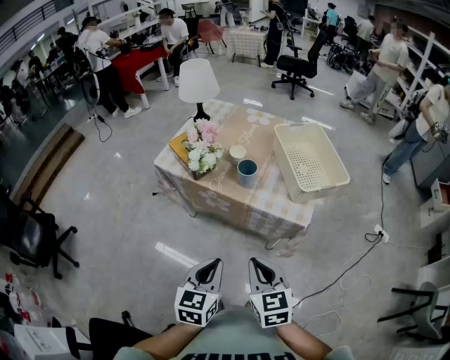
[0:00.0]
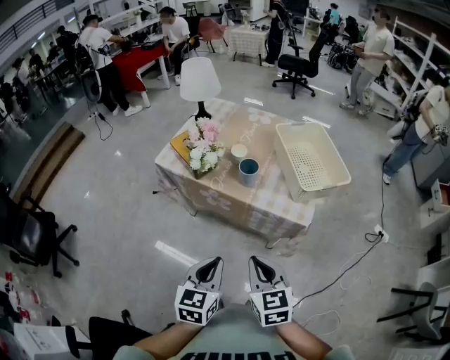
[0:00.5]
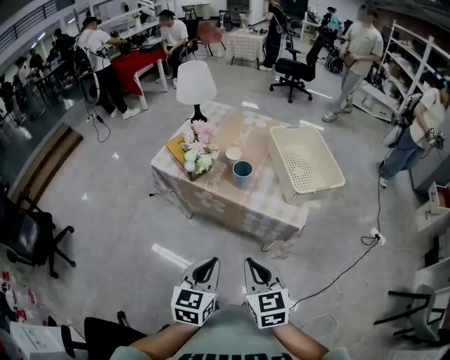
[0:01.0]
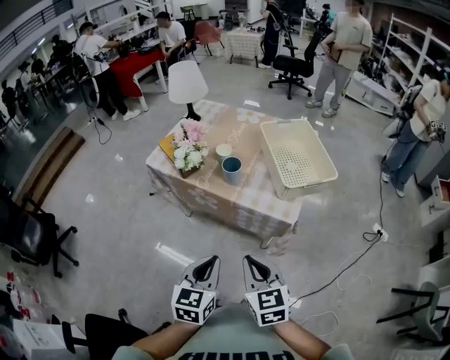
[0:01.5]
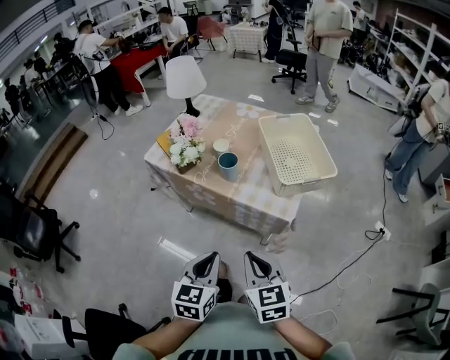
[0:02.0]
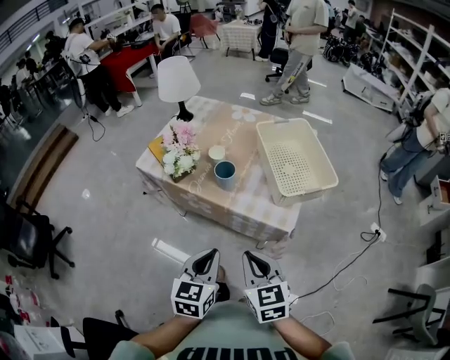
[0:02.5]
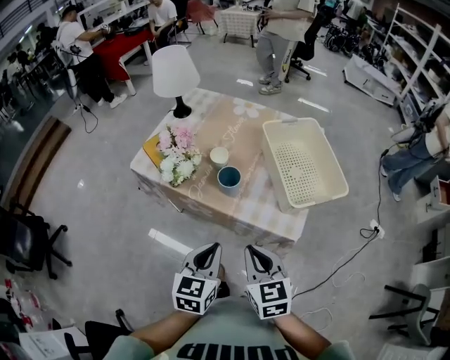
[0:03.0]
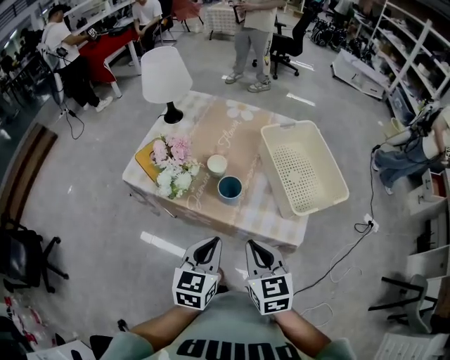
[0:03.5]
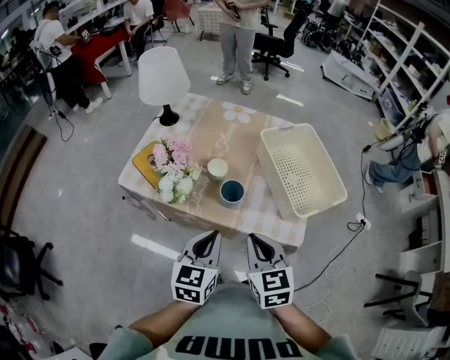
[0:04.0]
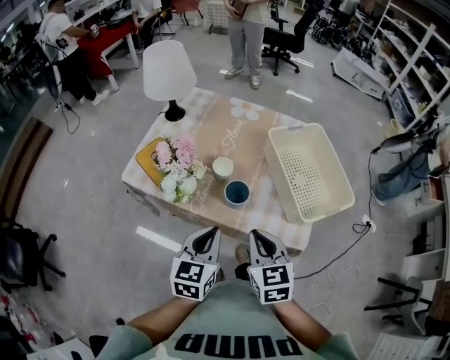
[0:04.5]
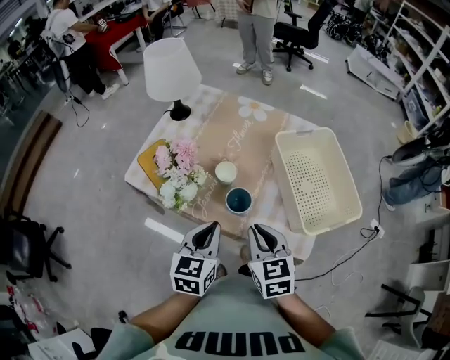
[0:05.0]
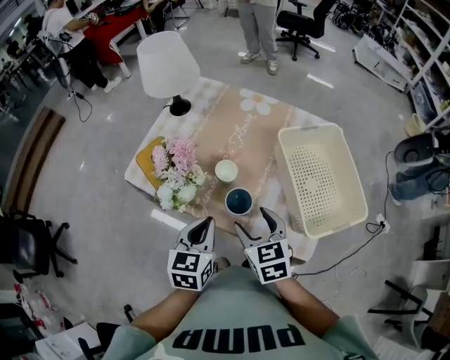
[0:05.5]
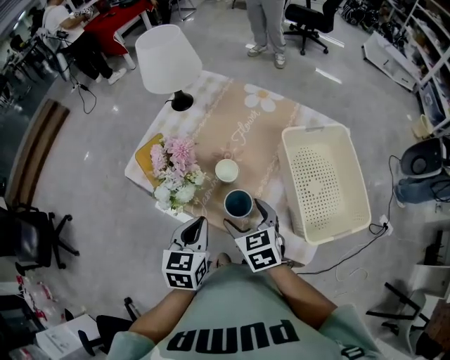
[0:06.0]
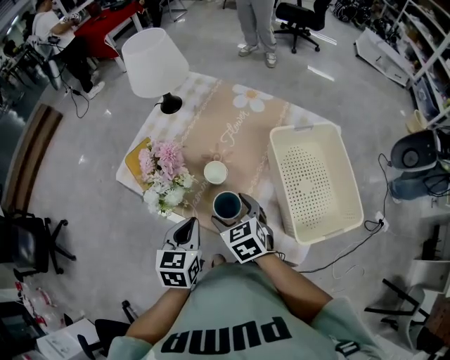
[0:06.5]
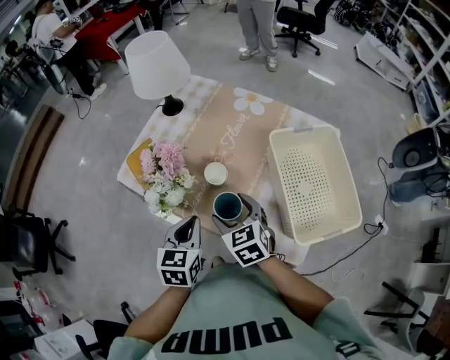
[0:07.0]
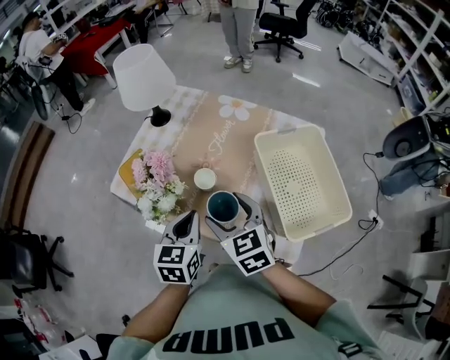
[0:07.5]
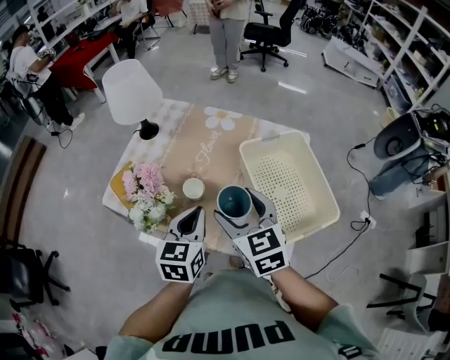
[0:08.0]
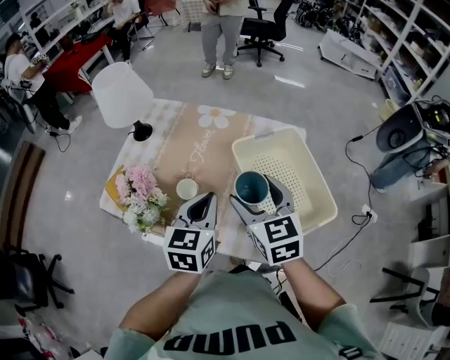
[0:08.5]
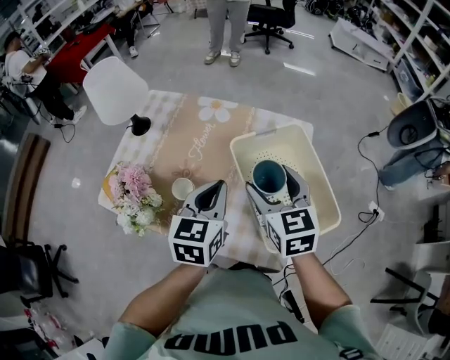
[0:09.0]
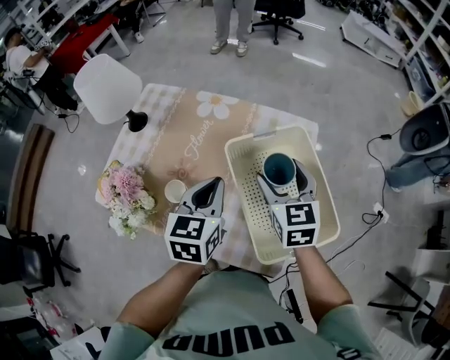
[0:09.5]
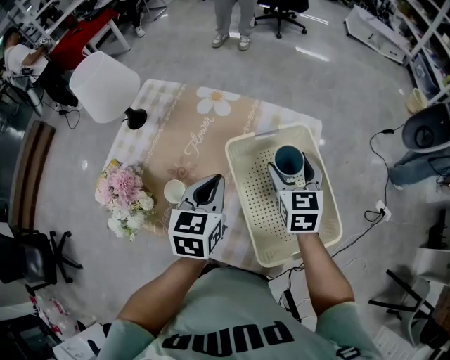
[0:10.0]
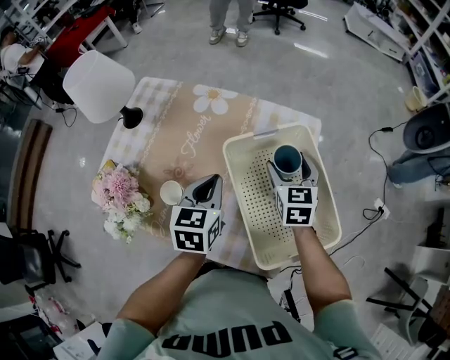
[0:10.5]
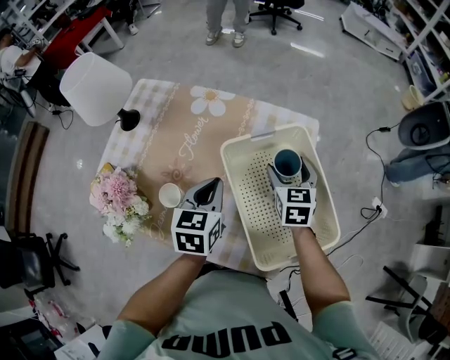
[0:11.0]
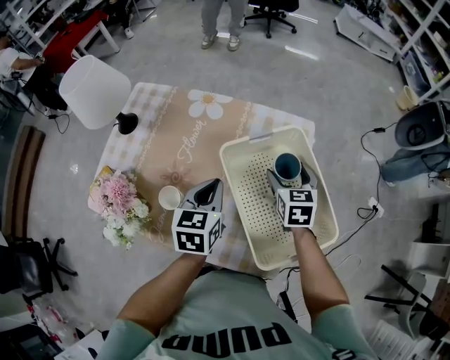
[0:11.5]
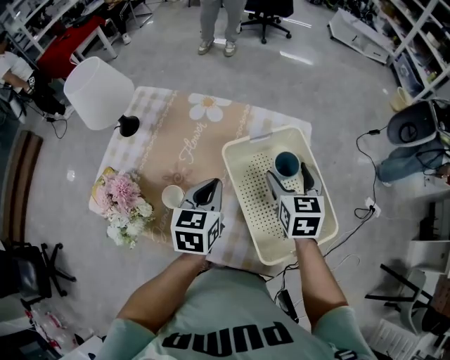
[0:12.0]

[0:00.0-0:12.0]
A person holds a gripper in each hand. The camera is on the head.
0:00.0 to 0:02.0: The two grippers go roughly 10 cm to the right.
0:02.0 to 0:04.0: The grippers both shift forward by approximately 20 cm.
0:04.0 to 0:06.0: The left gripper heads forward, covering approximately 10 cm, while the right gripper moves forward and downward, some 15 cm, swivels some 20 degrees, and opens up.
0:06.0 to 0:08.0: The left gripper shifts approximately 10 cm to the right and upward, while the right gripper shifts roughly 15 cm upward and to the right.
0:08.0 to 0:10.0: The left gripper goes about 15 cm forward and to the right; the right gripper travels to the right, forward and downward by approximately 30 cm.

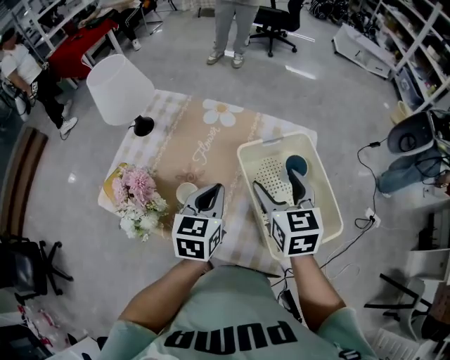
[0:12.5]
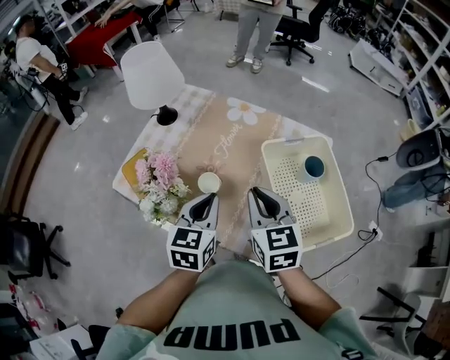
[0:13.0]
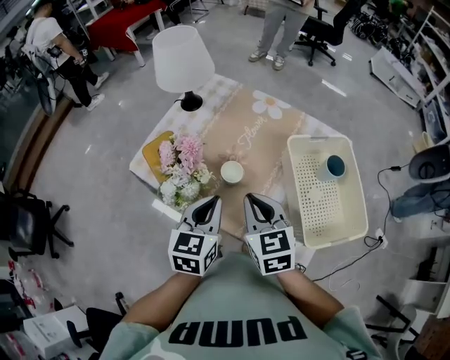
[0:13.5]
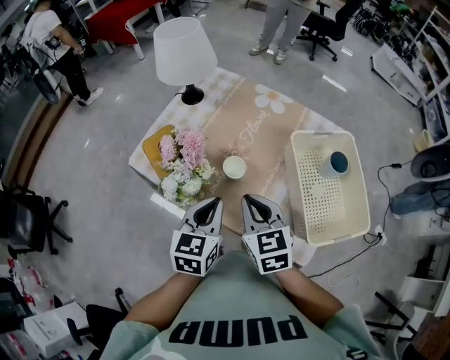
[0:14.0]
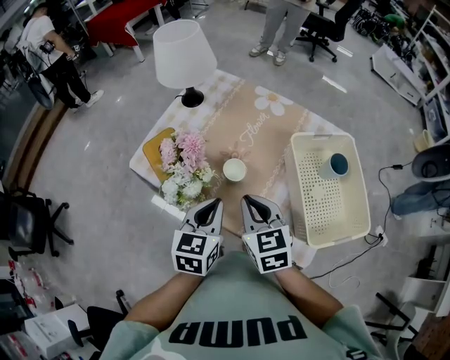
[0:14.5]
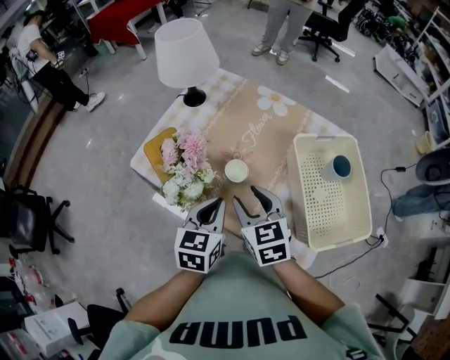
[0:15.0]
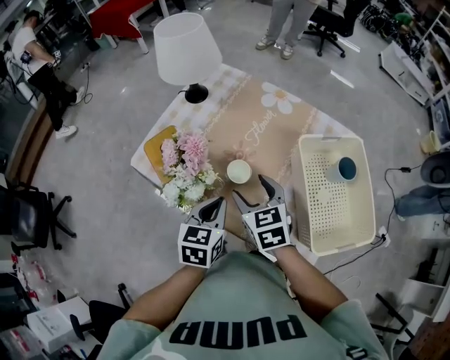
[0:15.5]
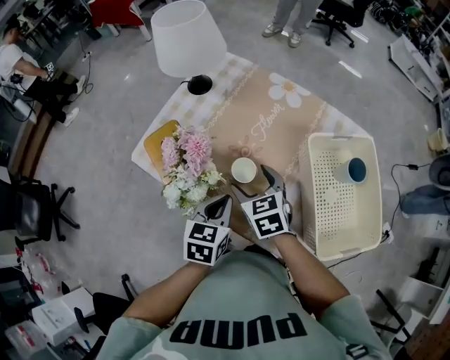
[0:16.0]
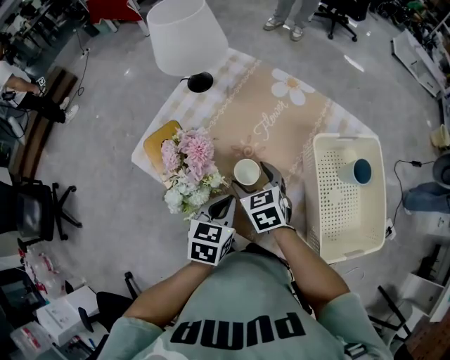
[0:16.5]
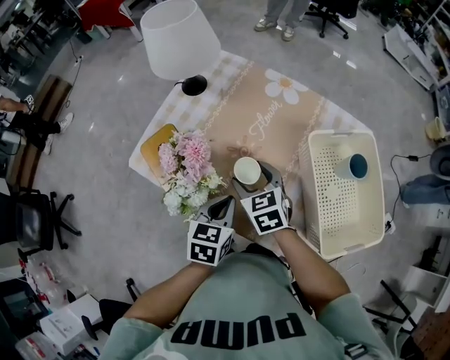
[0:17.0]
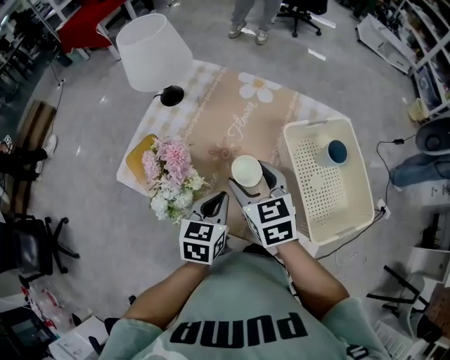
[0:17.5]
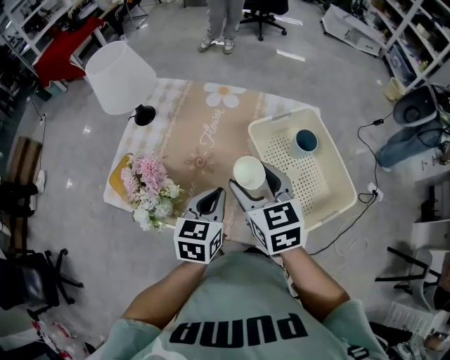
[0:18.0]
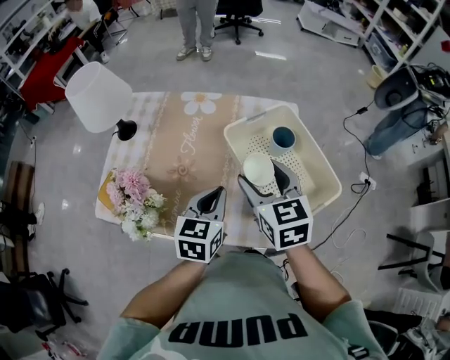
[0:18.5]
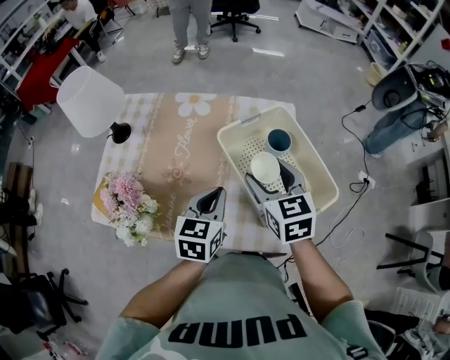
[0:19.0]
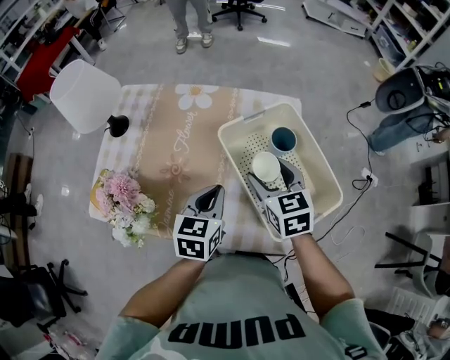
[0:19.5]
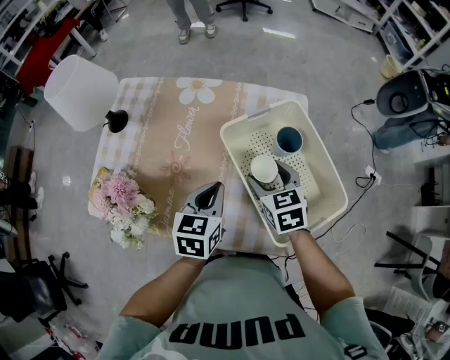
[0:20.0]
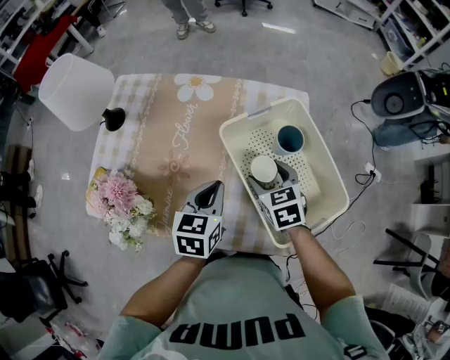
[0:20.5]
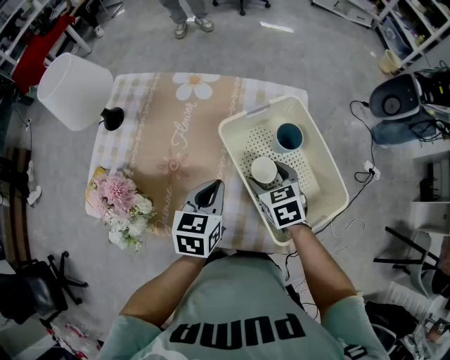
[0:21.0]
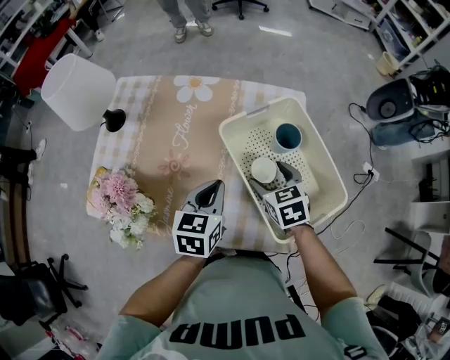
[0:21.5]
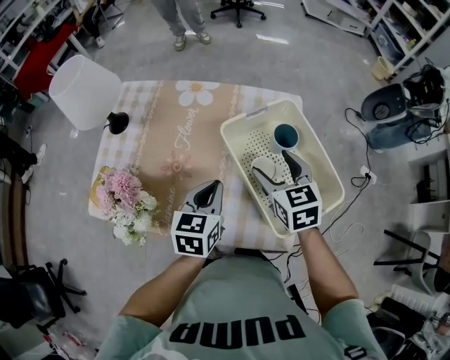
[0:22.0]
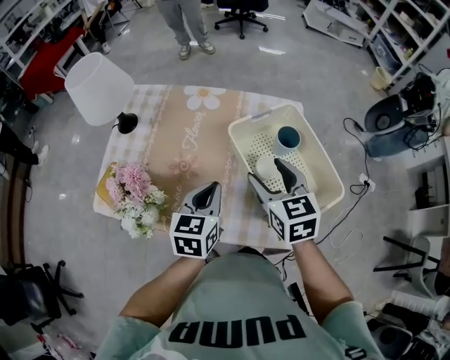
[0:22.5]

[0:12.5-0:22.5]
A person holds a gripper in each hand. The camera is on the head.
0:12.5 to 0:14.5: The two grippers go roughly 20 cm to the left and backward. The right gripper changes its angle by roughly 20 degrees, and closes its fingers.
0:14.5 to 0:16.5: The left gripper travels downward by some 10 cm. The right gripper heads downward and forward, covering approximately 15 cm, and opens its fingers.
0:16.5 to 0:18.5: The right gripper heads to the right and upward, covering about 25 cm, and turns by roughly 30 degrees. Meanwhile the left gripper travels to the right and upward by approximately 15 cm, and swivels some 20 degrees.
0:18.5 to 0:20.5: The right gripper is displaced downward by roughly 15 cm. Meanwhile the left gripper goes roughly 5 cm downward and forward.
0:20.5 to 0:22.5: The left gripper ends up roughly 5 cm from where it was. The right gripper moves upward, approximately 15 cm.

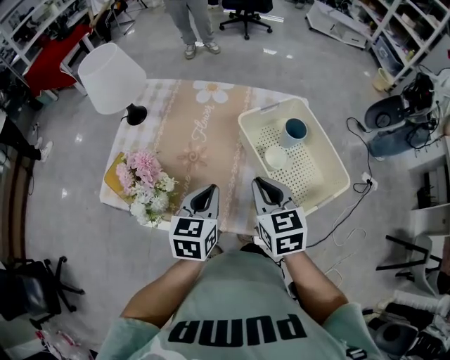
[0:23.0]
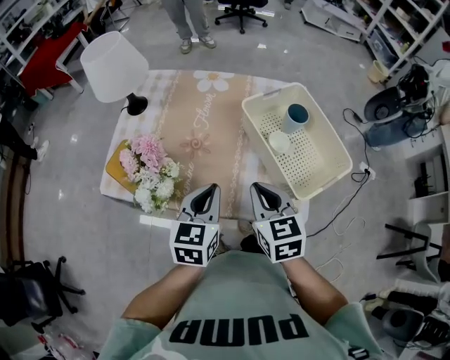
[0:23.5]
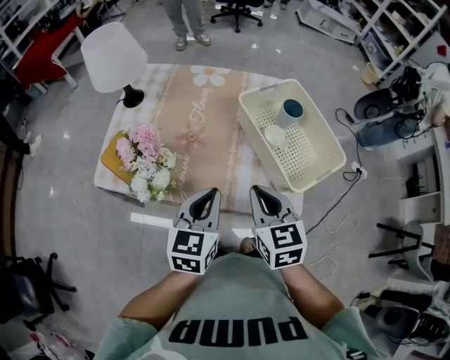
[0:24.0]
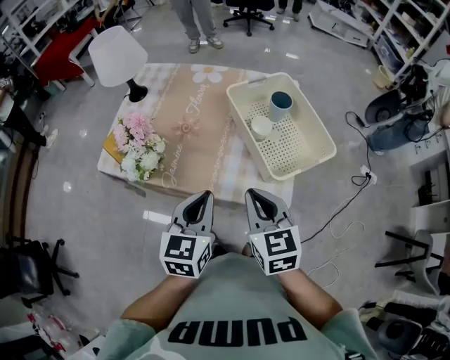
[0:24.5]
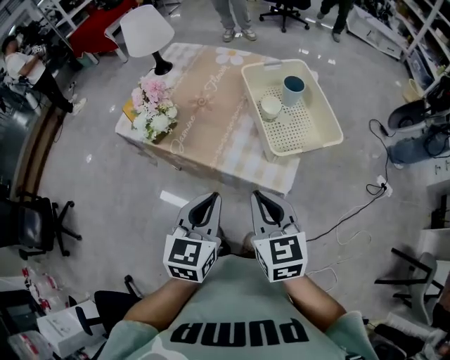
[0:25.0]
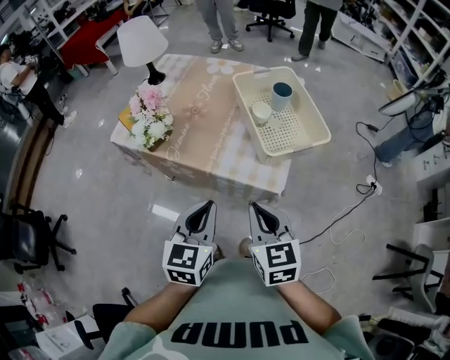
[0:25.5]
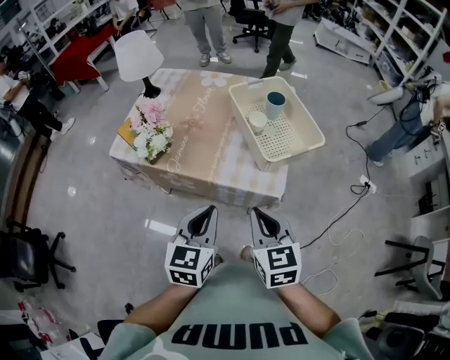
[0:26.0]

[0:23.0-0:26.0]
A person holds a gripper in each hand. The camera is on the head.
0:23.0 to 0:24.5: The grippers both shift backward by about 15 cm.
0:24.5 to 0:26.0: The grippers both shift backward by some 15 cm.

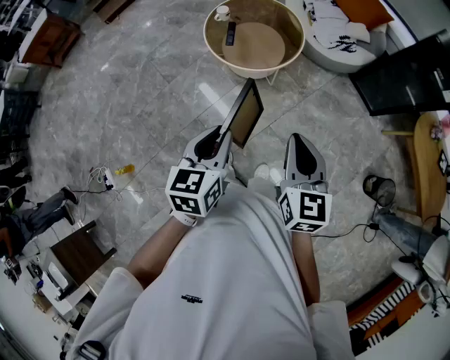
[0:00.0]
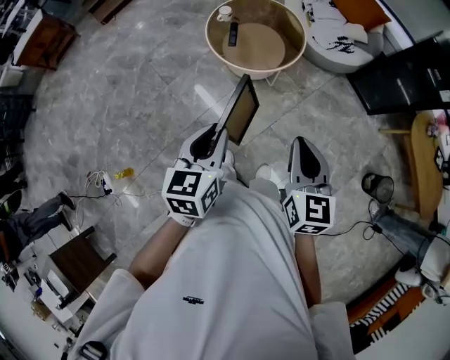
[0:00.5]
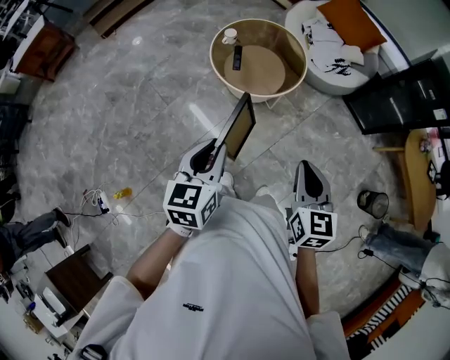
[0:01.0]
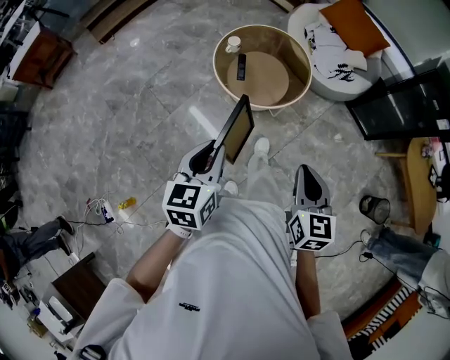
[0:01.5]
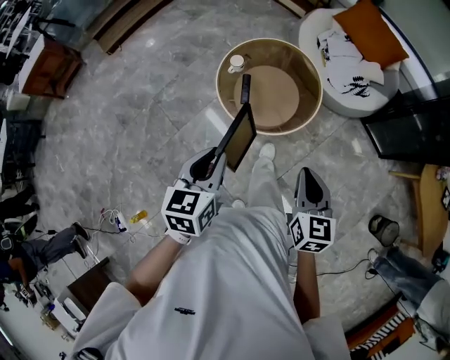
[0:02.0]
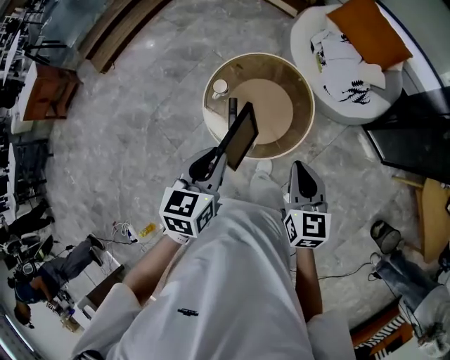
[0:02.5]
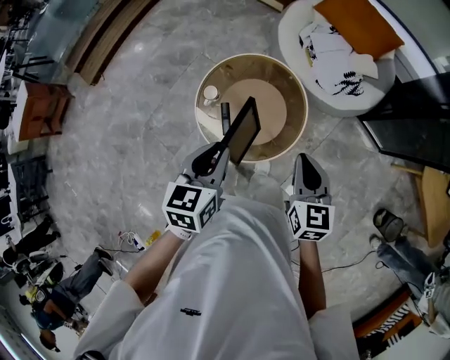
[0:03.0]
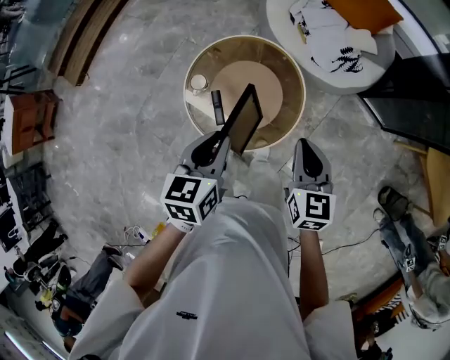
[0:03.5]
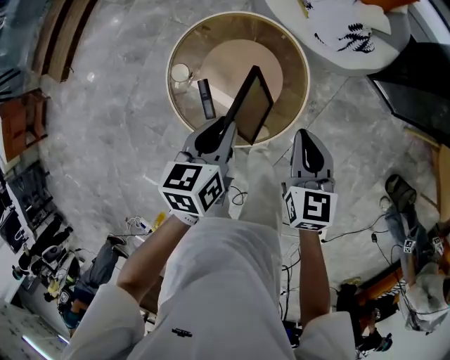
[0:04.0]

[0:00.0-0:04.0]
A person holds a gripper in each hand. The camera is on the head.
0:00.0 to 0:02.0: The left gripper moves forward and to the left, some 30 cm. Meanwhile the right gripper shifts some 25 cm forward.
0:02.0 to 0:04.0: Both grippers move forward and downward, roughly 40 cm.
